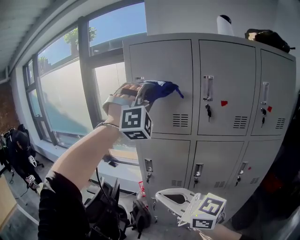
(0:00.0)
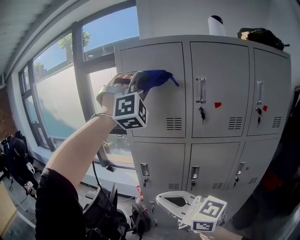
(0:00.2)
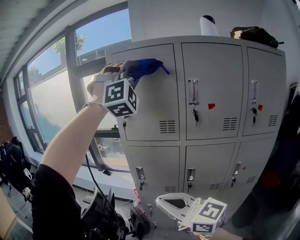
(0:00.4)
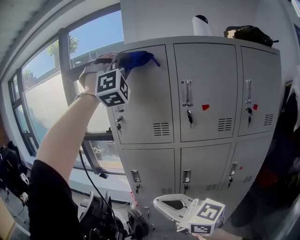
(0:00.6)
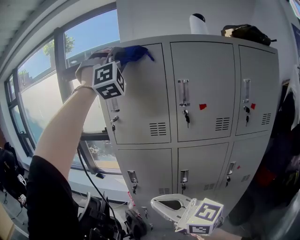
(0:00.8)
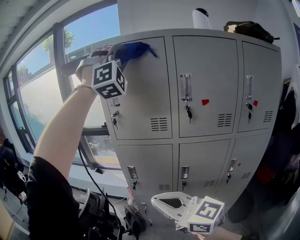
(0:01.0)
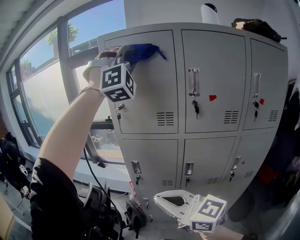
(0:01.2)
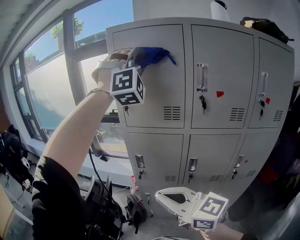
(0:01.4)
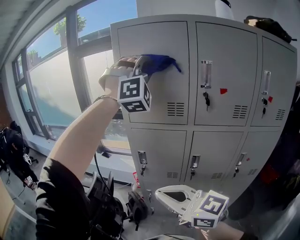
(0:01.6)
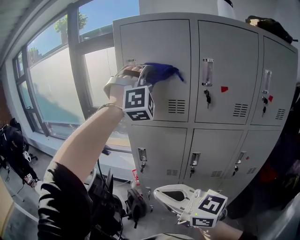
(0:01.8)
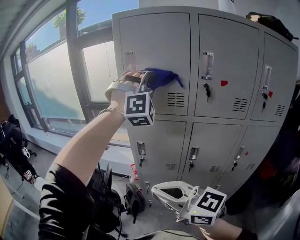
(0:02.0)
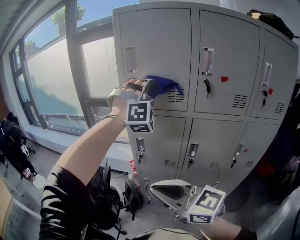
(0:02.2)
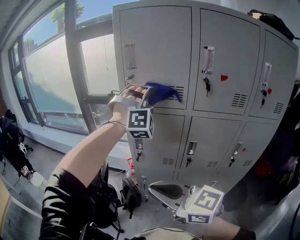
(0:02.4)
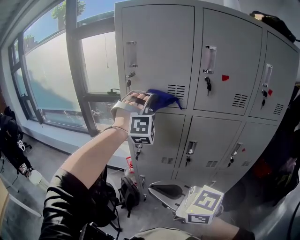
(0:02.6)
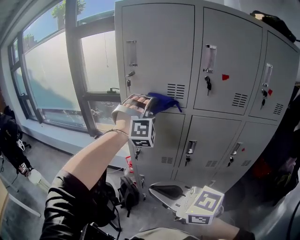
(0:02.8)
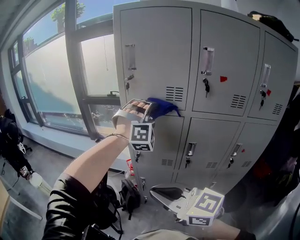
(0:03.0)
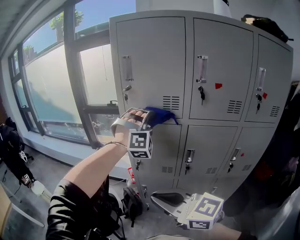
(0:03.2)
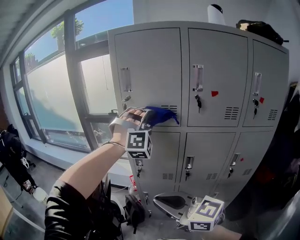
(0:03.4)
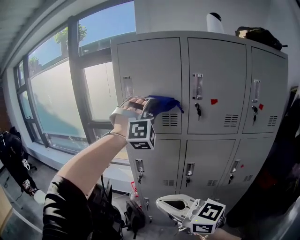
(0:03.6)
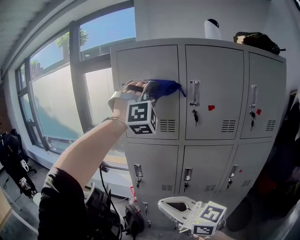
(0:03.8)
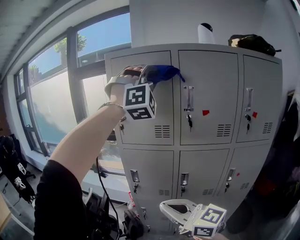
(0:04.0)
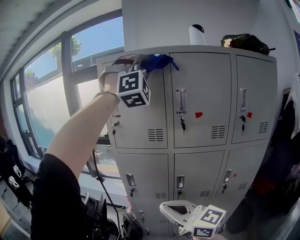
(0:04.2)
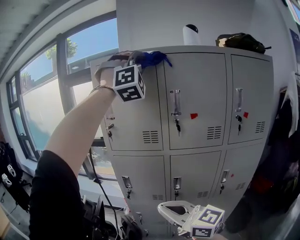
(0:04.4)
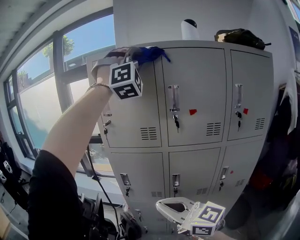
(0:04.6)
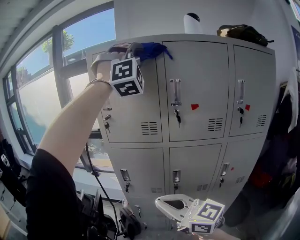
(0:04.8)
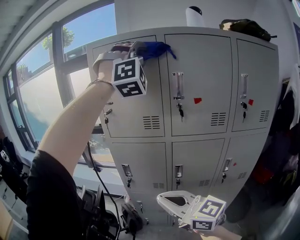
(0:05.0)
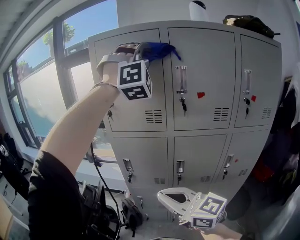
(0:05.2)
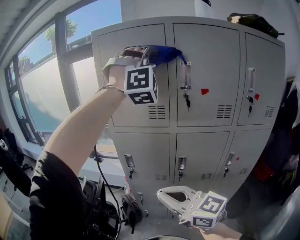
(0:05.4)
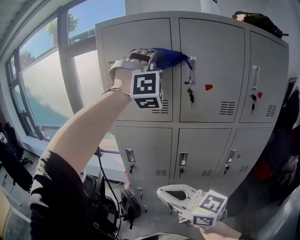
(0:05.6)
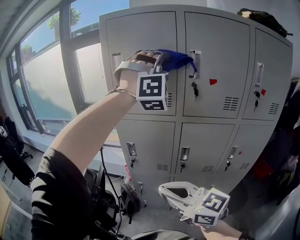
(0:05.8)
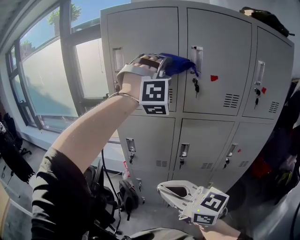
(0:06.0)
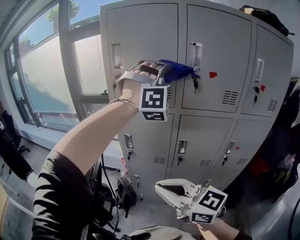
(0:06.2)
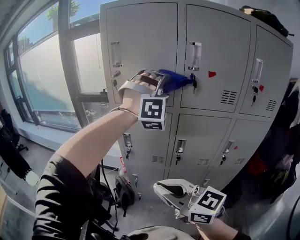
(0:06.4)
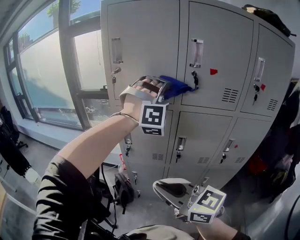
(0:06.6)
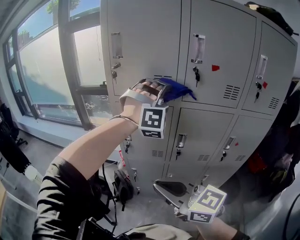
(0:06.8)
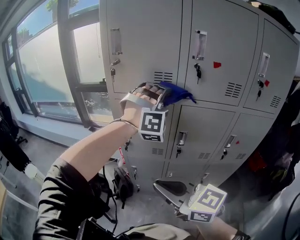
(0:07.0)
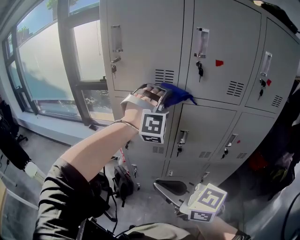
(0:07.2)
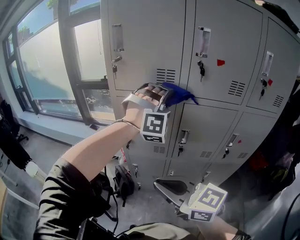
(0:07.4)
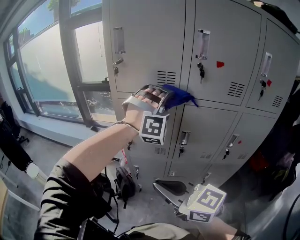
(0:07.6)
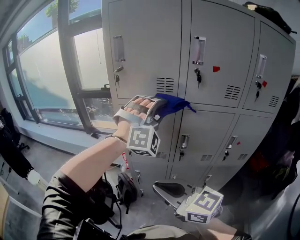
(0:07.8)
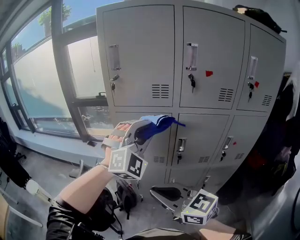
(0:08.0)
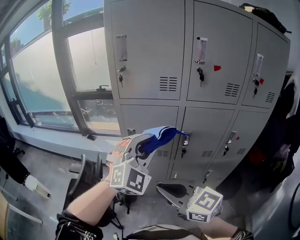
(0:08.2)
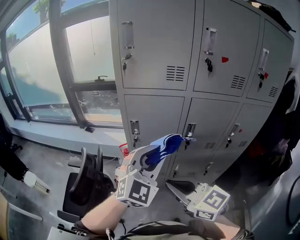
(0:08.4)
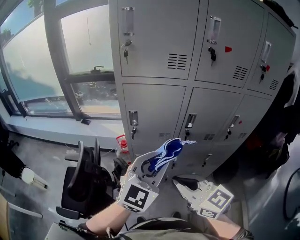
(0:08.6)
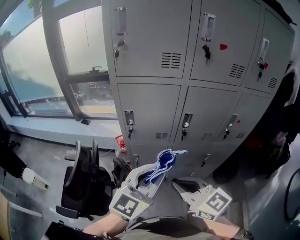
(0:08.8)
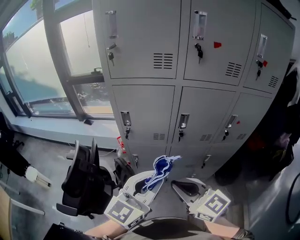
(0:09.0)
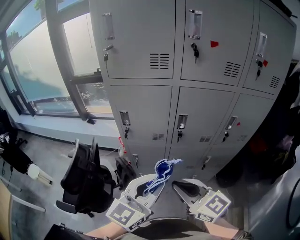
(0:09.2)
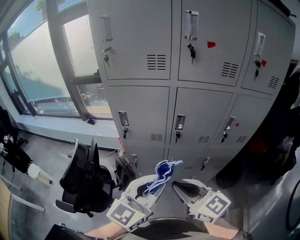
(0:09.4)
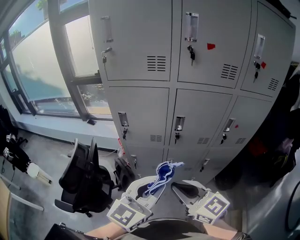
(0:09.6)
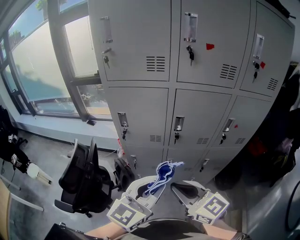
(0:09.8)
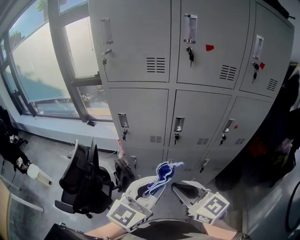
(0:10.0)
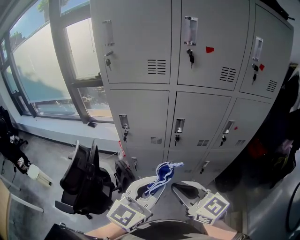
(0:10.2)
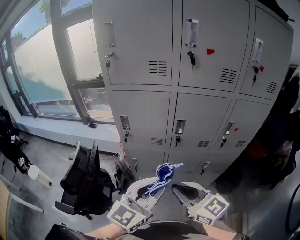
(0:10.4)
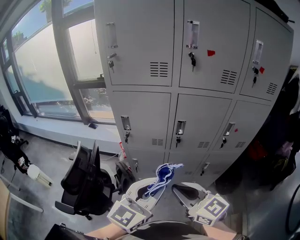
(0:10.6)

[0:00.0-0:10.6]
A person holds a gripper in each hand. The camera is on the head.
0:03.0 to 0:04.6: The right gripper changes place by roughly 10 cm.
0:04.6 to 0:06.0: The right gripper shifts by roughly 5 cm.
0:07.6 to 0:09.0: The right gripper is displaced downward by about 10 cm.

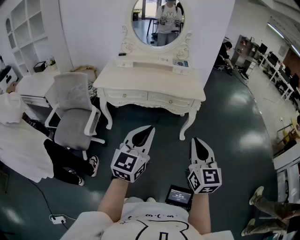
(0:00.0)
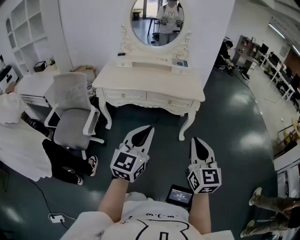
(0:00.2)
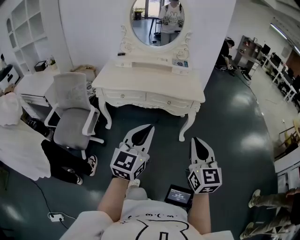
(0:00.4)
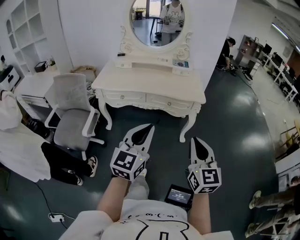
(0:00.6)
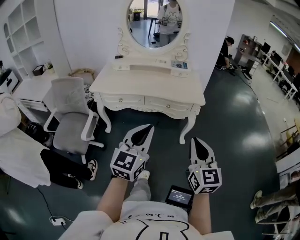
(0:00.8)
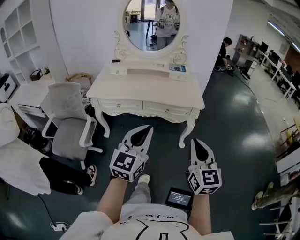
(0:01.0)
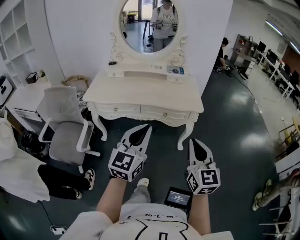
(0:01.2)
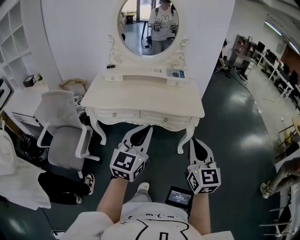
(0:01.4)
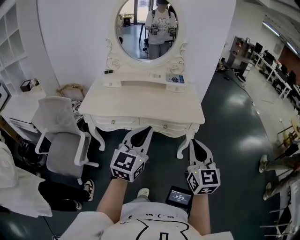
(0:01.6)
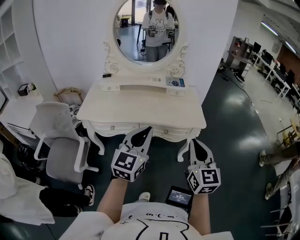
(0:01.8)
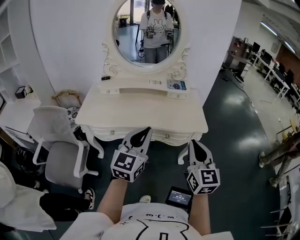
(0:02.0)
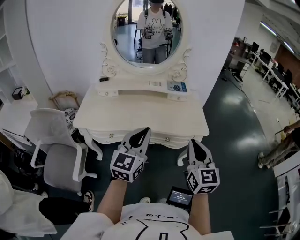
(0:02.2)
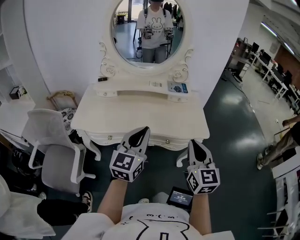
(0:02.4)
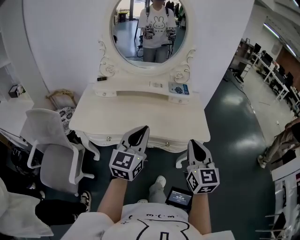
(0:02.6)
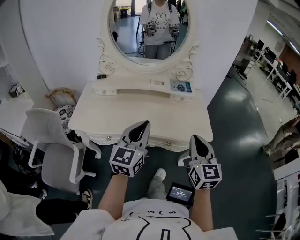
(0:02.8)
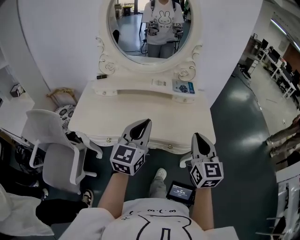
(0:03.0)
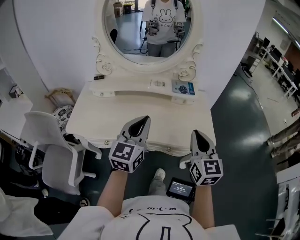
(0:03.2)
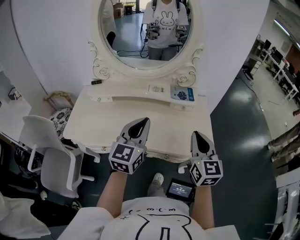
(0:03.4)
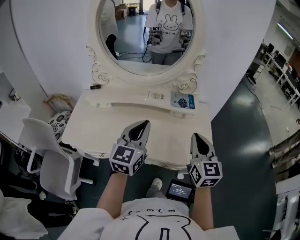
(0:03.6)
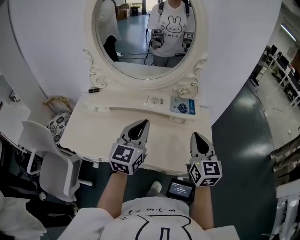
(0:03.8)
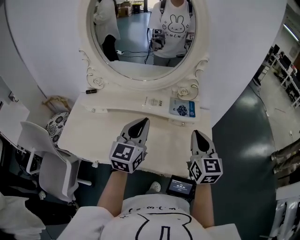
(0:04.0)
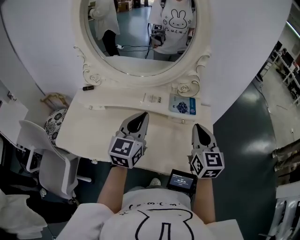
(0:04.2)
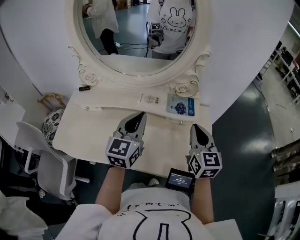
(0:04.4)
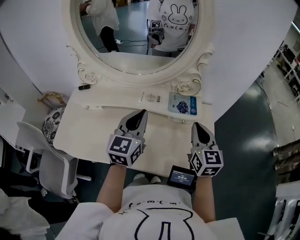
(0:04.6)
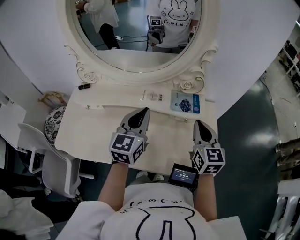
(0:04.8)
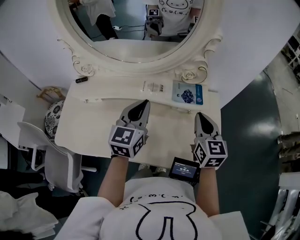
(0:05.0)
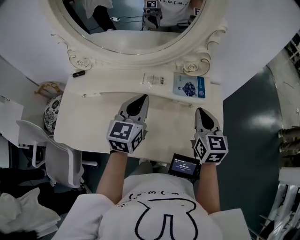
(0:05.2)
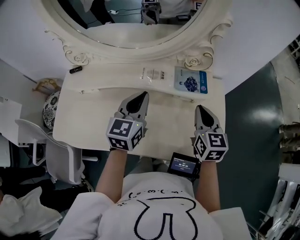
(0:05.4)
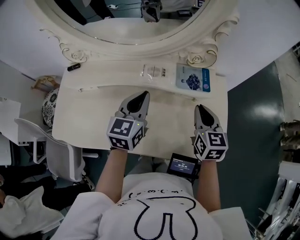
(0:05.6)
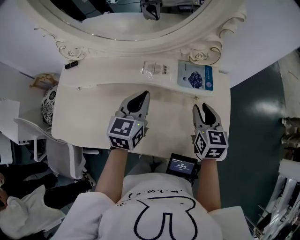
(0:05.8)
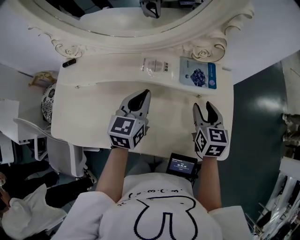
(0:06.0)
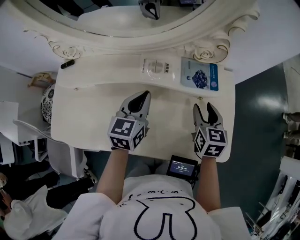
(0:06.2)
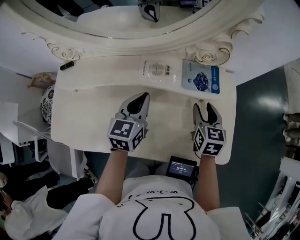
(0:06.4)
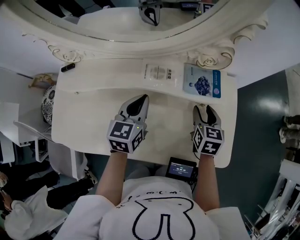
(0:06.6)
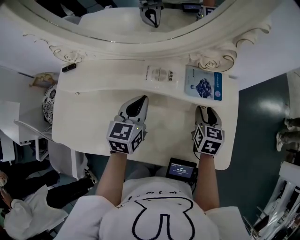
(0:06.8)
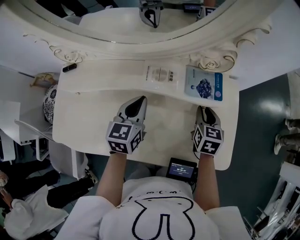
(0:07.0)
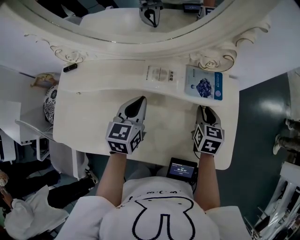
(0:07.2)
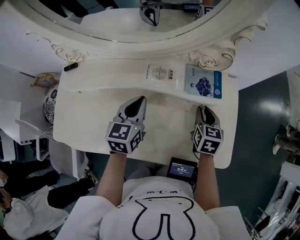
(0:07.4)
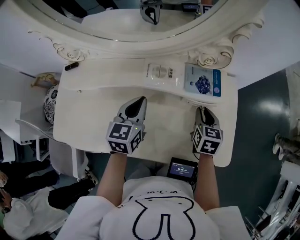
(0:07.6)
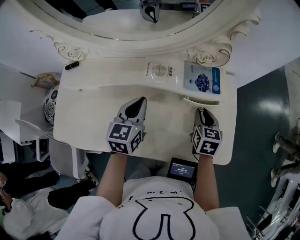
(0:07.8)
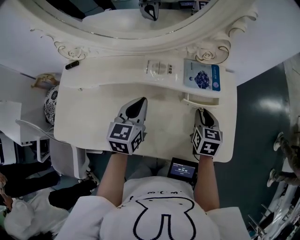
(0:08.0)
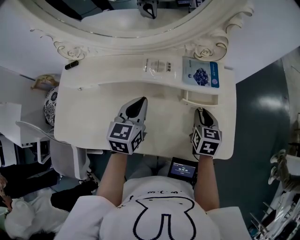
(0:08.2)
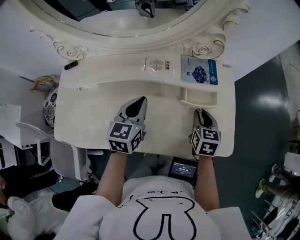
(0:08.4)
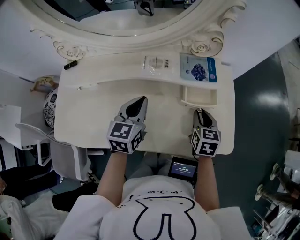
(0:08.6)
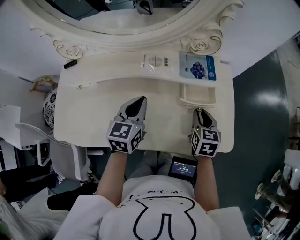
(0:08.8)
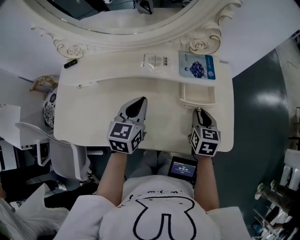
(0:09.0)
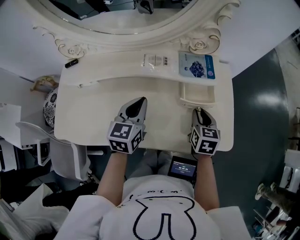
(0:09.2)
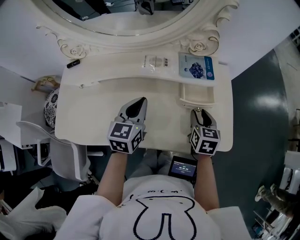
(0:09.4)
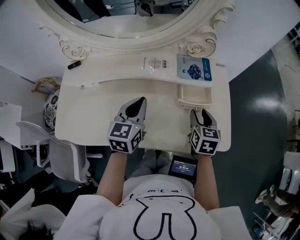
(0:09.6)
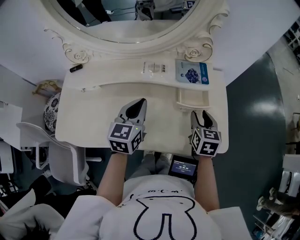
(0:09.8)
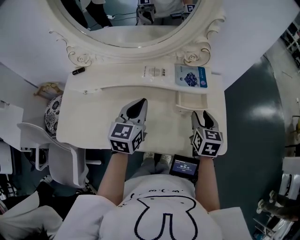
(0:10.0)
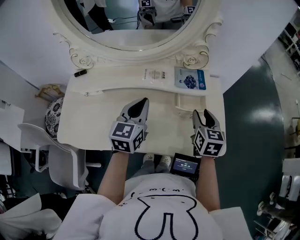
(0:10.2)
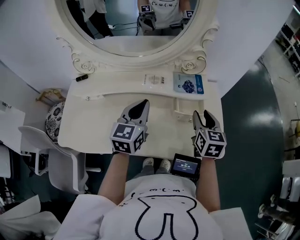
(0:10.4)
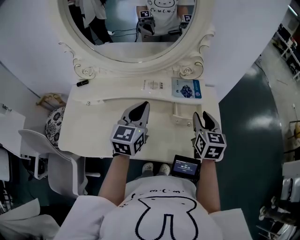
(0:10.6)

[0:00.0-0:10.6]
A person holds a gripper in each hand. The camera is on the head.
0:00.0 to 0:01.6: The two grippers go about 20 cm forward.
0:01.6 to 0:03.0: The two grippers go some 20 cm forward.
0:03.0 to 0:04.6: The grippers both shift forward by about 25 cm.
0:04.6 to 0:06.0: Both grippers travel together downward, about 15 cm. The right gripper changes its angle by roughly 20 degrees, and opens its fingers.
0:06.0 to 0:07.6: The right gripper shifts about 5 cm downward.
0:07.6 to 0:09.0: The left gripper changes place by about 5 cm, while the right gripper heads backward, covering about 5 cm.
0:09.0 to 0:10.6: Both grippers move upward, some 10 cm.

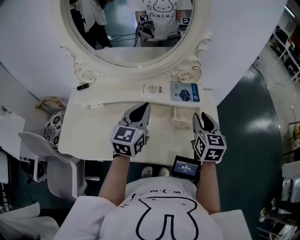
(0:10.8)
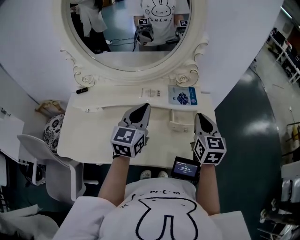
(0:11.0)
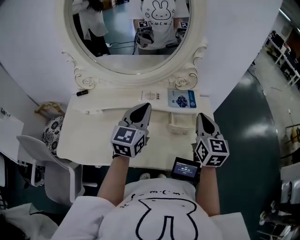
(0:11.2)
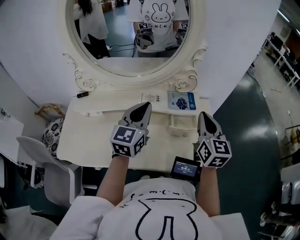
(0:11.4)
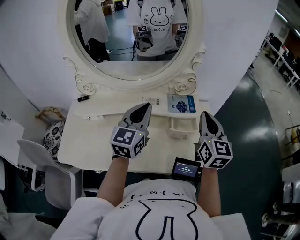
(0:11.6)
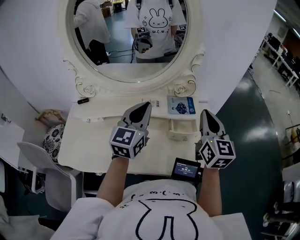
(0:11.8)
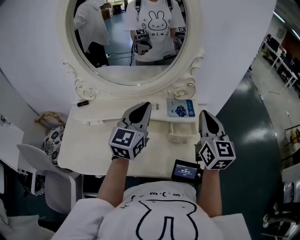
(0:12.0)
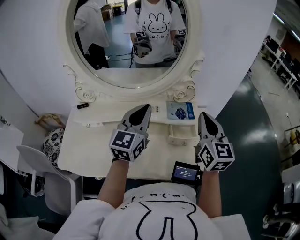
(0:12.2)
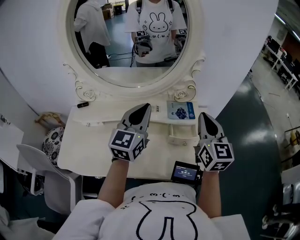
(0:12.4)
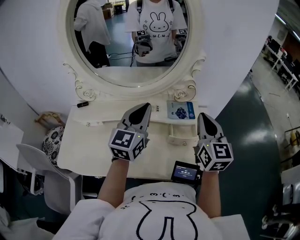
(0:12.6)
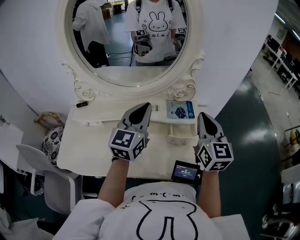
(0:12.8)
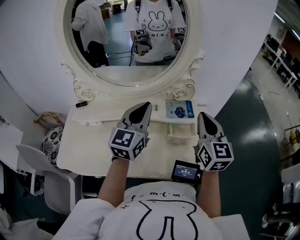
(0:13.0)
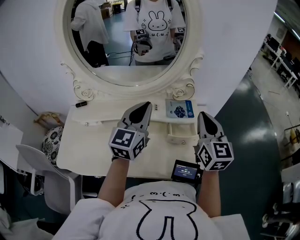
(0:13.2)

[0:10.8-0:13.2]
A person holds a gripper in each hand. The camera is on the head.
0:10.8 to 0:12.0: The right gripper is displaced upward by some 10 cm, and closes up. The left gripper is displaced upward by some 10 cm.
0:12.0 to 0:13.2: Both grippers stay put.
